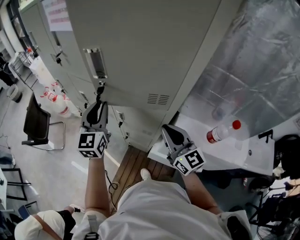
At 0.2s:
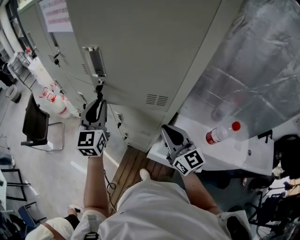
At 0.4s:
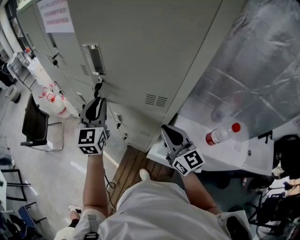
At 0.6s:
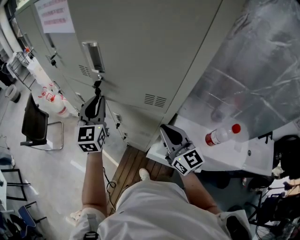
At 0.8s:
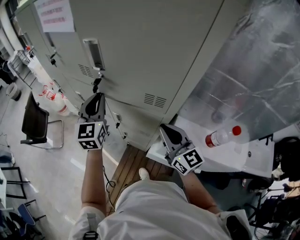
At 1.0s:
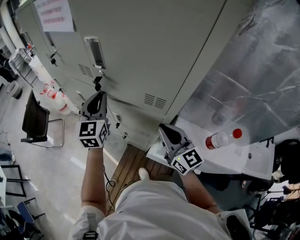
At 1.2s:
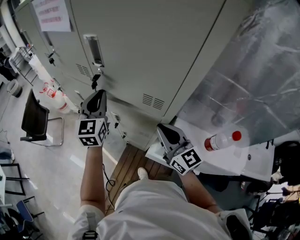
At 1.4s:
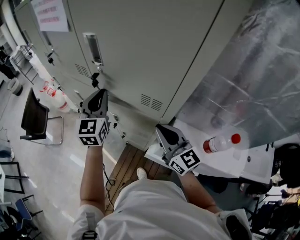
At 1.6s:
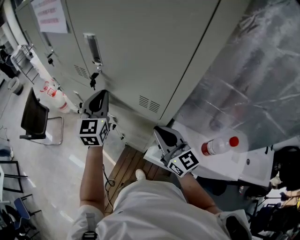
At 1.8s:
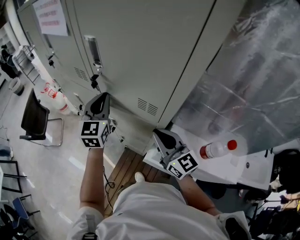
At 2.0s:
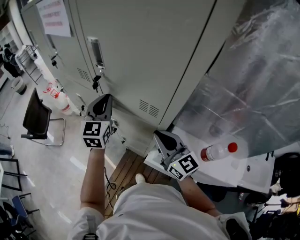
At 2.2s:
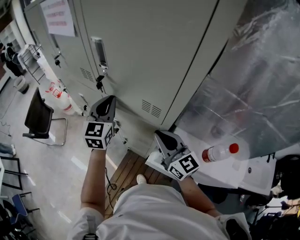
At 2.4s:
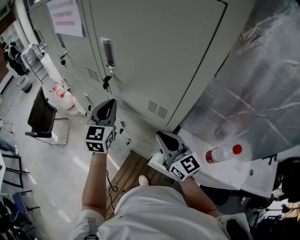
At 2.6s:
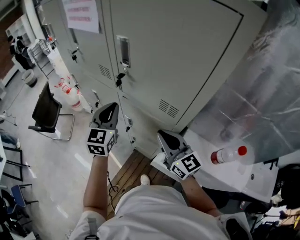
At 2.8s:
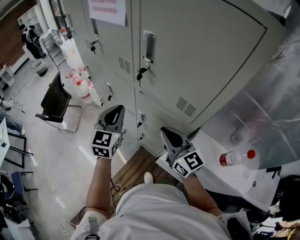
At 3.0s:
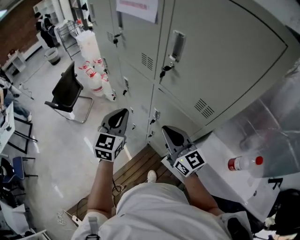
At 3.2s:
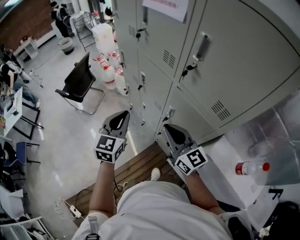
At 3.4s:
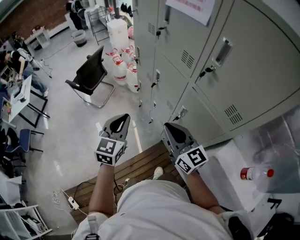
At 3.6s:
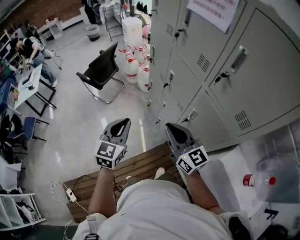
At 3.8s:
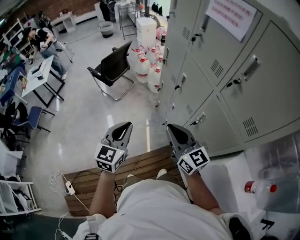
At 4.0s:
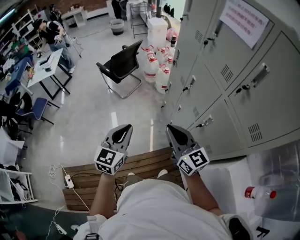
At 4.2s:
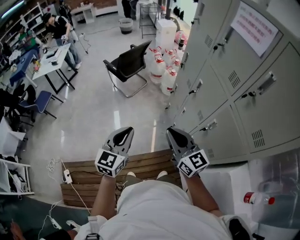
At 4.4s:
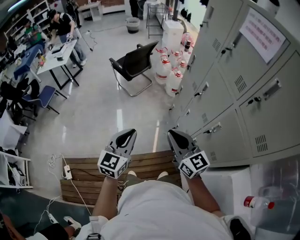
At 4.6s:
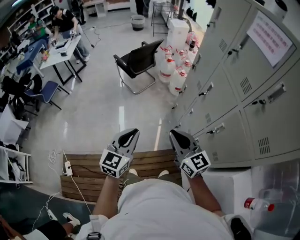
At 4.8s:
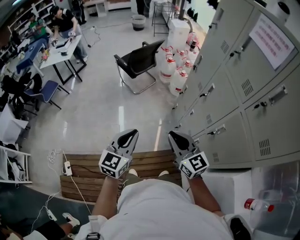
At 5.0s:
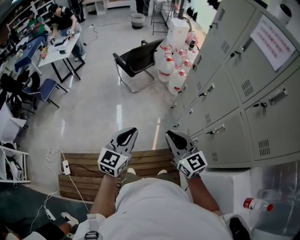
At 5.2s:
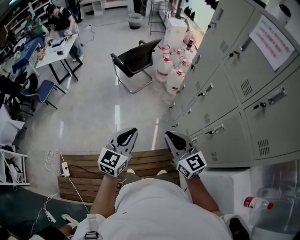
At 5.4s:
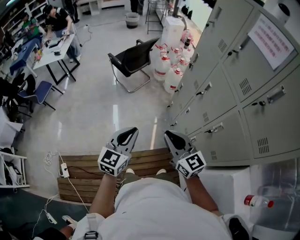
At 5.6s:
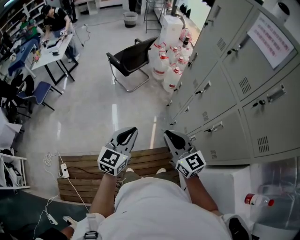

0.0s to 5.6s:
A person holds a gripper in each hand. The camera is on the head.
0.0s to 1.4s: The left gripper goes approximately 5 cm forward.
1.4s to 2.8s: The left gripper heads to the left and backward, covering approximately 10 cm. The right gripper shifts approximately 10 cm to the left.
2.8s to 4.2s: The right gripper ends up about 30 cm from where it was, and changes its angle by about 40 degrees; the left gripper shifts by about 35 cm, and turns by approximately 30 degrees.
4.2s to 5.6s: The right gripper shifts about 5 cm to the left.

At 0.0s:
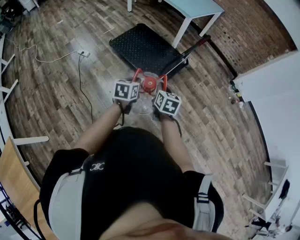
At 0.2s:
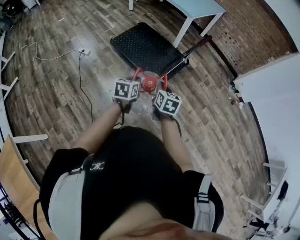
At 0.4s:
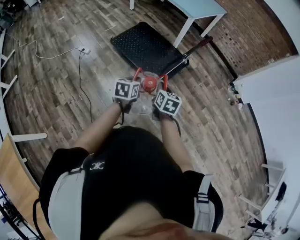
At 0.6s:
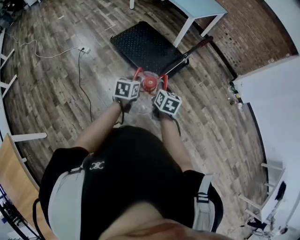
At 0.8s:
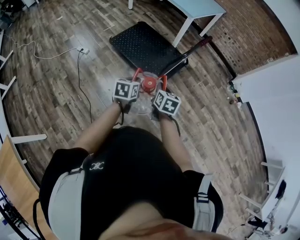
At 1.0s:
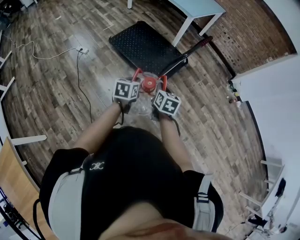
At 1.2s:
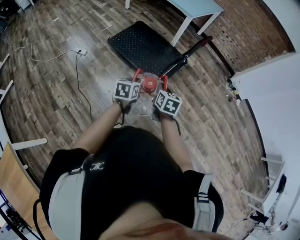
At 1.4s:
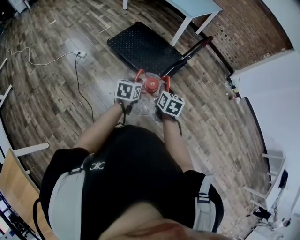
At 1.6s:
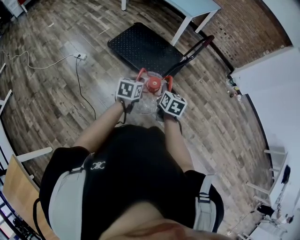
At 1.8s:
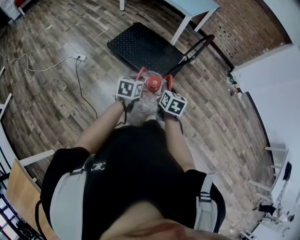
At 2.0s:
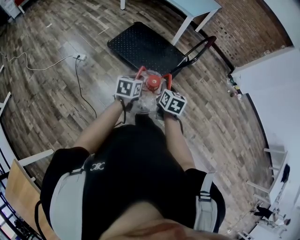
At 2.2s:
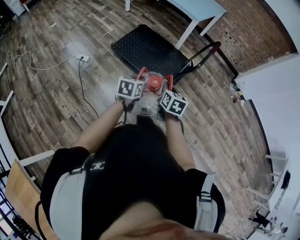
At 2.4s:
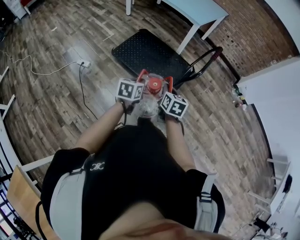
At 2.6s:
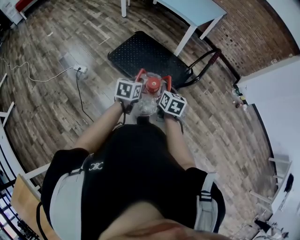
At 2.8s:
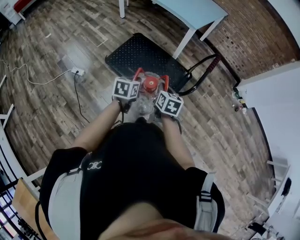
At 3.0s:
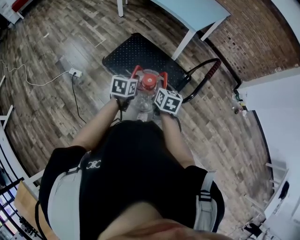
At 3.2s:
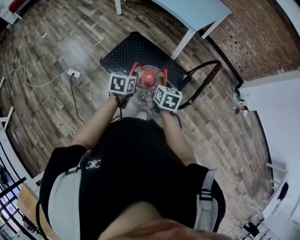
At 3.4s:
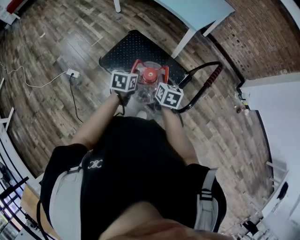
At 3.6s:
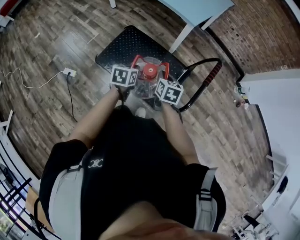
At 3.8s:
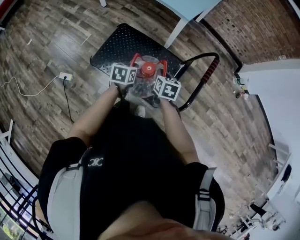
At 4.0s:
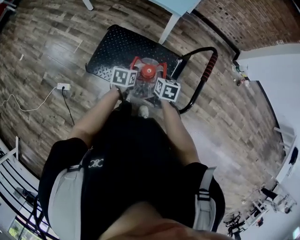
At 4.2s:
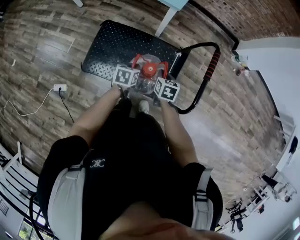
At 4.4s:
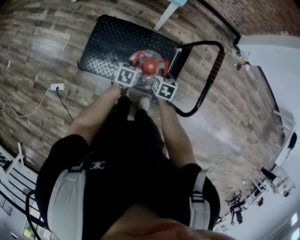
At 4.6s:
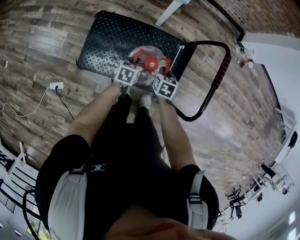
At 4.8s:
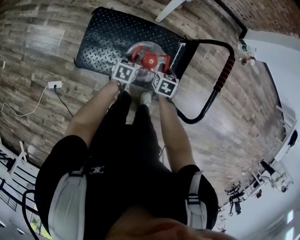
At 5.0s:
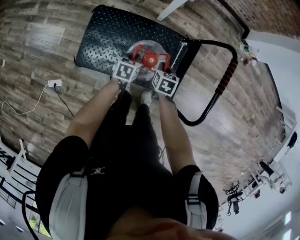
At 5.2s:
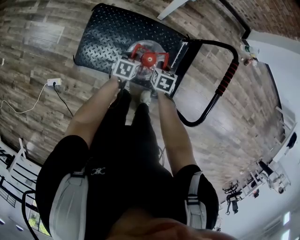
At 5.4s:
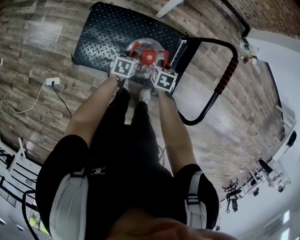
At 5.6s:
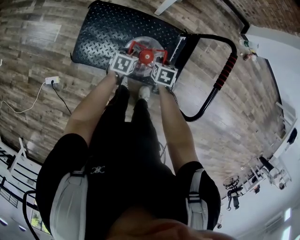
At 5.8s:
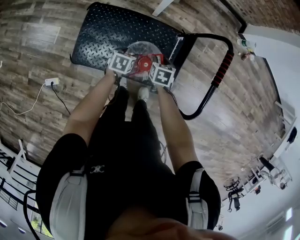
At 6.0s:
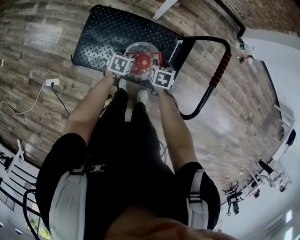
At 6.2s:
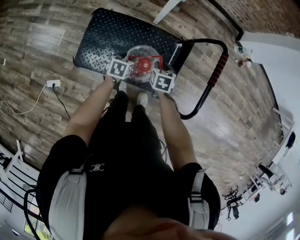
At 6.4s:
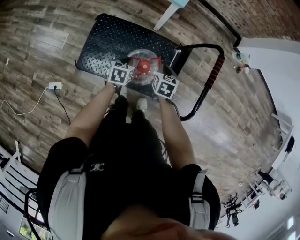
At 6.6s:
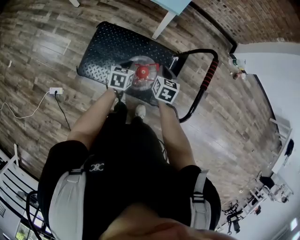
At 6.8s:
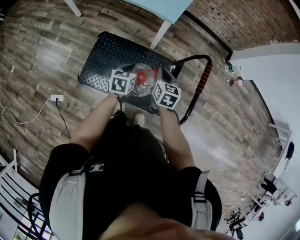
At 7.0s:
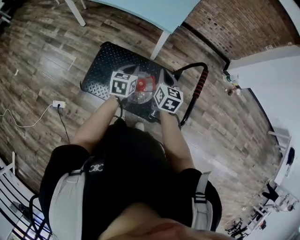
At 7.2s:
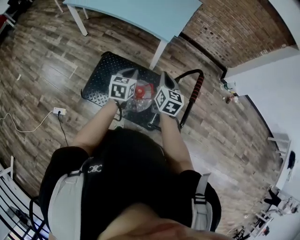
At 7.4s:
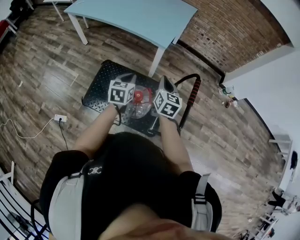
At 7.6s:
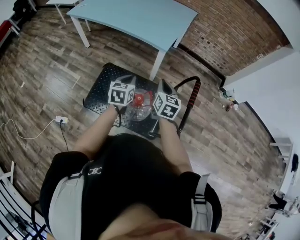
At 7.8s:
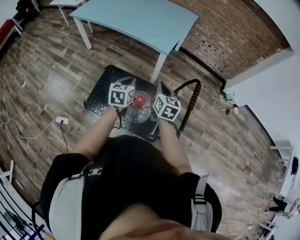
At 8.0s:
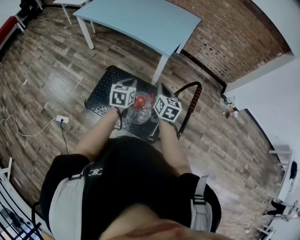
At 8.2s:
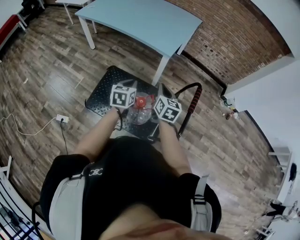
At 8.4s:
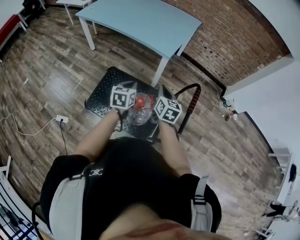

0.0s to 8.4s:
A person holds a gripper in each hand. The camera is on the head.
0.0s to 1.4s: The left gripper heads to the left, covering some 5 cm.
1.4s to 2.8s: Both grippers travel together forward, roughly 20 cm.
2.8s to 4.2s: Both grippers move forward and downward, about 30 cm. The left gripper changes its angle by about 20 degrees, while the right gripper rotates approximately 20 degrees.
4.2s to 5.6s: The grippers both shift downward and forward by roughly 15 cm.
5.6s to 7.0s: The grippers both shift upward by about 25 cm. The right gripper angles its fingers upward, by some 40 degrees, and opens, then closes once more, while the left gripper swivels about 30 degrees, and opens, then closes again.
7.0s to 8.4s: The left gripper moves upward, some 5 cm.

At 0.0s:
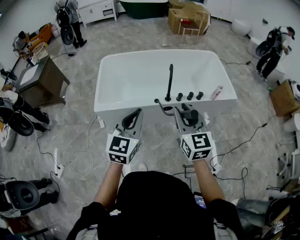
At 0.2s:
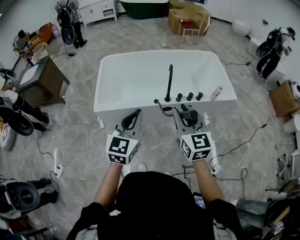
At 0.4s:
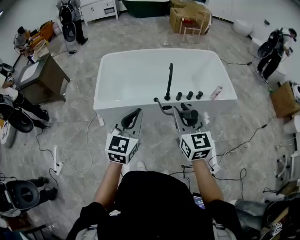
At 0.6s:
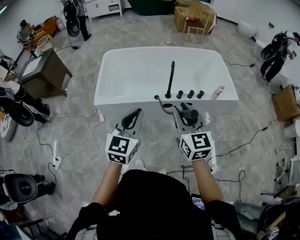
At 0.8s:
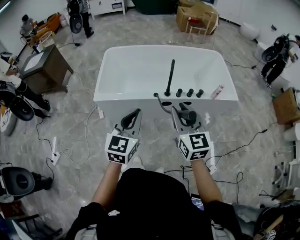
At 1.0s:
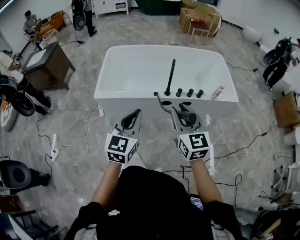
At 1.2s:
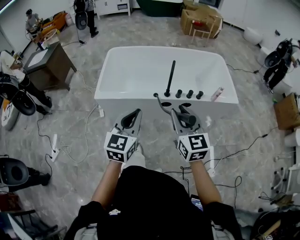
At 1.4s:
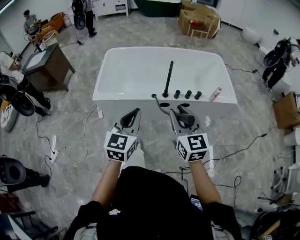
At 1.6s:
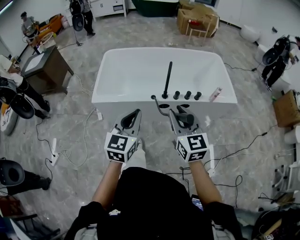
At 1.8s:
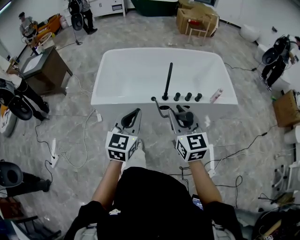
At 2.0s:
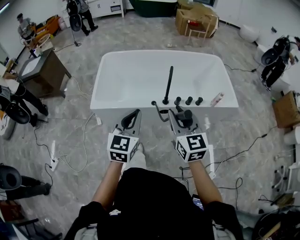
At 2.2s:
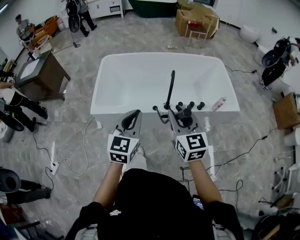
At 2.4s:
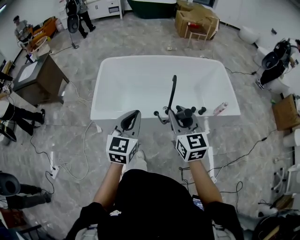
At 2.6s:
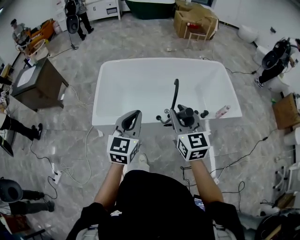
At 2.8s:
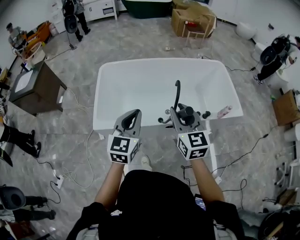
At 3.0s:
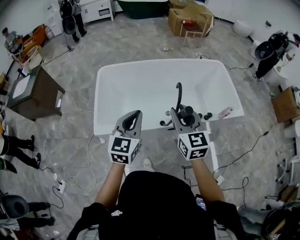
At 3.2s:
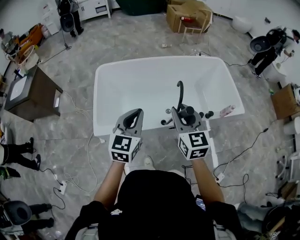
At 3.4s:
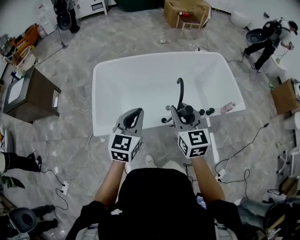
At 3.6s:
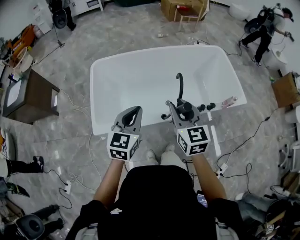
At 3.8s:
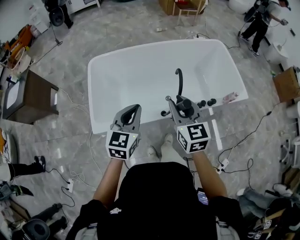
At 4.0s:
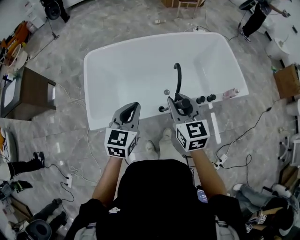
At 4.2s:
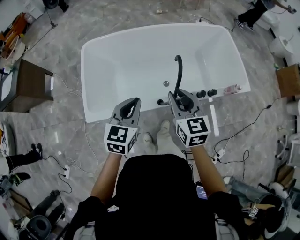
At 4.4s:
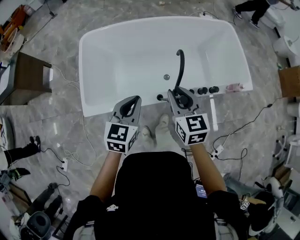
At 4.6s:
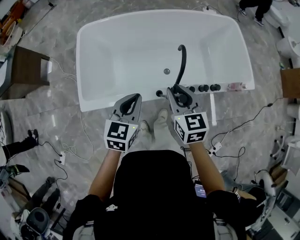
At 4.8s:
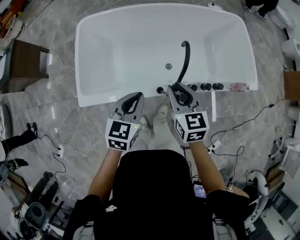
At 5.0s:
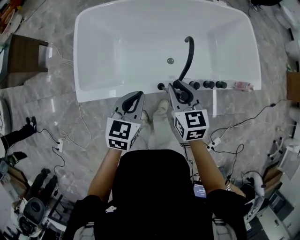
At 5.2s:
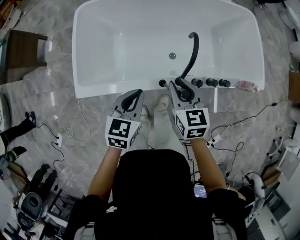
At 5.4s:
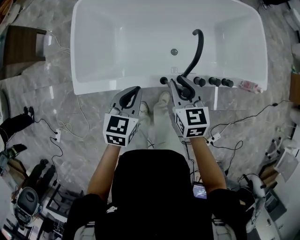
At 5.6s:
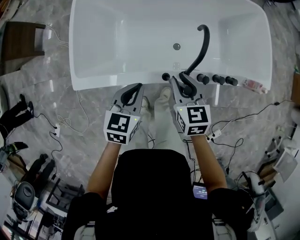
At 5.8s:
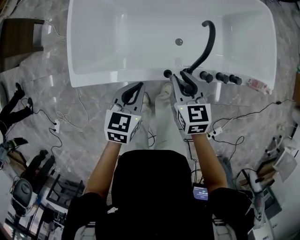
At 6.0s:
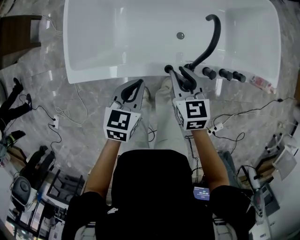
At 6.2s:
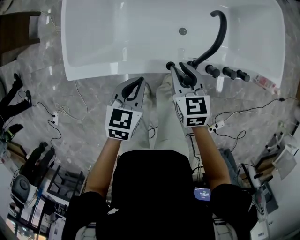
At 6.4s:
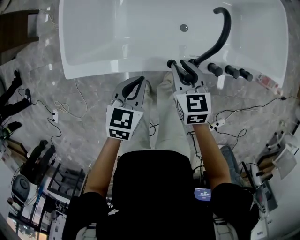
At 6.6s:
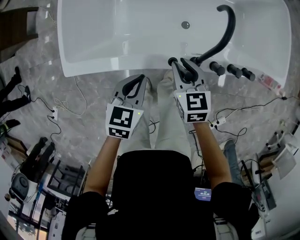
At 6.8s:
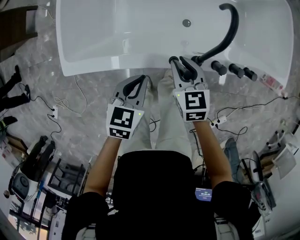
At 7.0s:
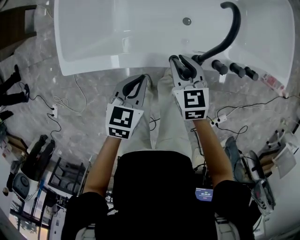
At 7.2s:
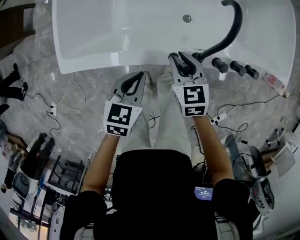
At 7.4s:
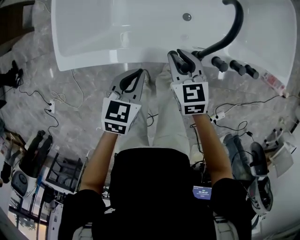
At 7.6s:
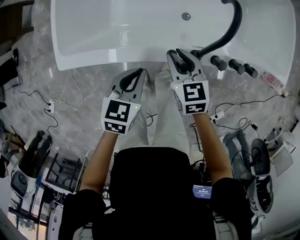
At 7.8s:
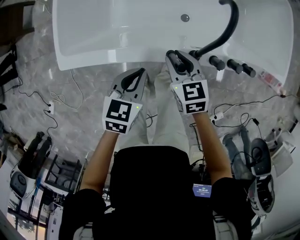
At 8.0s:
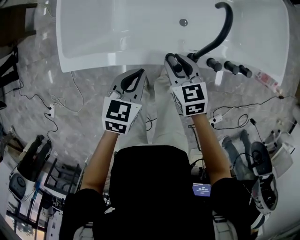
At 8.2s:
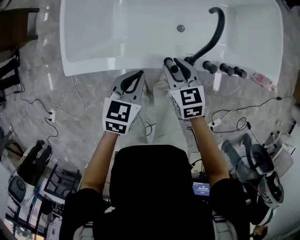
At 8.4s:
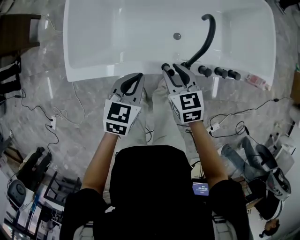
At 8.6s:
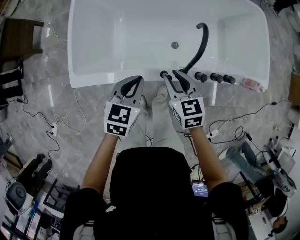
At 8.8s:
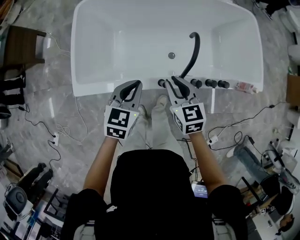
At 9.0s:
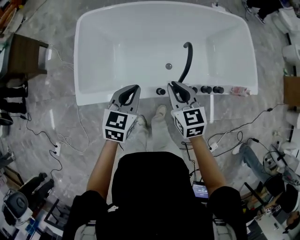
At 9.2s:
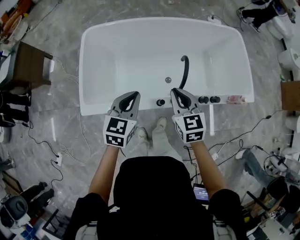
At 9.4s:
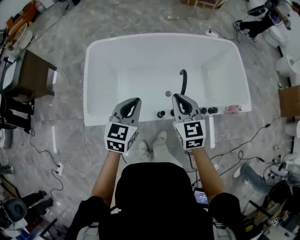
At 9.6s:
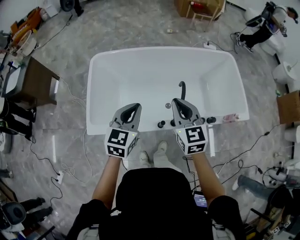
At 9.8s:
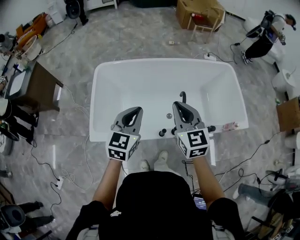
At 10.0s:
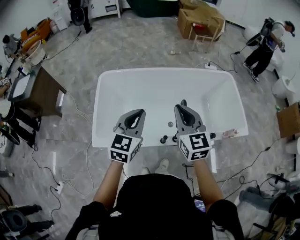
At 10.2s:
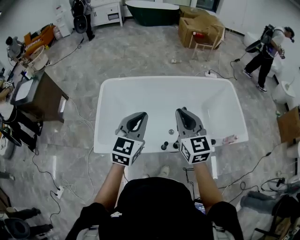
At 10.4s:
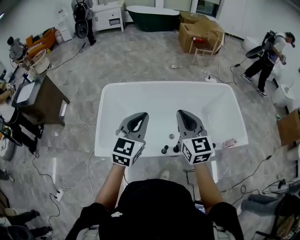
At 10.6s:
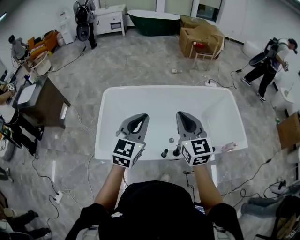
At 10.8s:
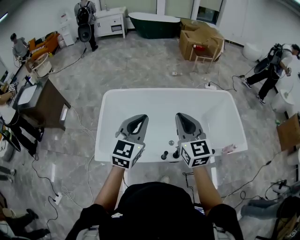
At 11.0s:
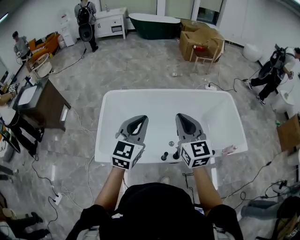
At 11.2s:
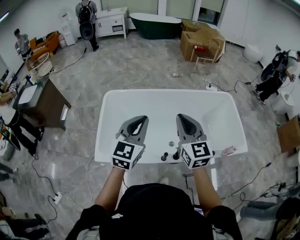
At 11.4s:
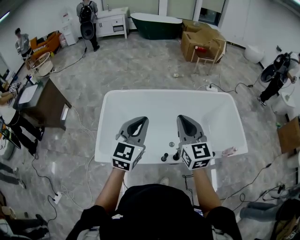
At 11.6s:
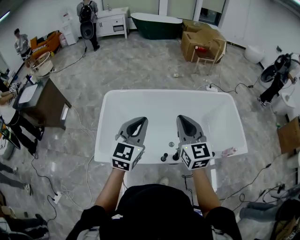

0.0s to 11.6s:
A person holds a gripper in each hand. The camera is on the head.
0.0s to 1.4s: Both grippers move backward, some 5 cm.
1.4s to 2.8s: Both grippers move forward, some 25 cm.
2.8s to 4.4s: The two grippers go approximately 20 cm downward and forward.
4.4s to 5.8s: Both grippers move downward, approximately 20 cm.
5.8s to 7.2s: Both grippers move downward, some 10 cm.
7.2s to 8.8s: The two grippers go approximately 20 cm upward.
8.8s to 10.2s: Both grippers move upward, about 30 cm. The left gripper rotates some 30 degrees; the right gripper rotates roughly 30 degrees.
10.2s to 11.6s: The grippers stay close to where they were, moving slightly.
